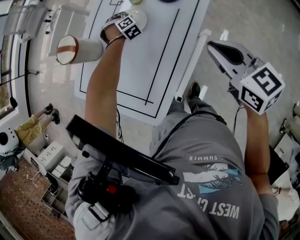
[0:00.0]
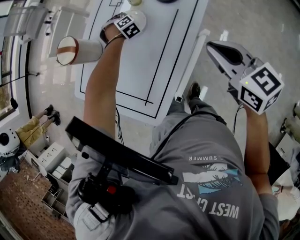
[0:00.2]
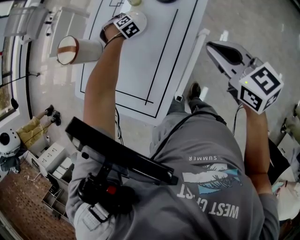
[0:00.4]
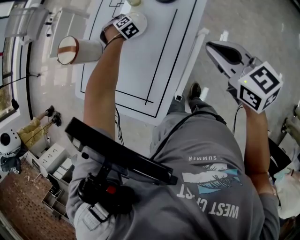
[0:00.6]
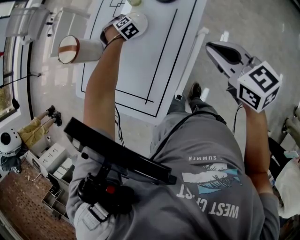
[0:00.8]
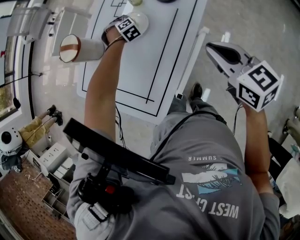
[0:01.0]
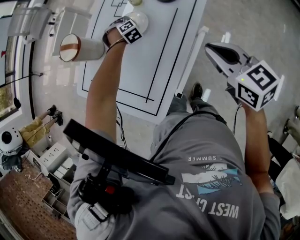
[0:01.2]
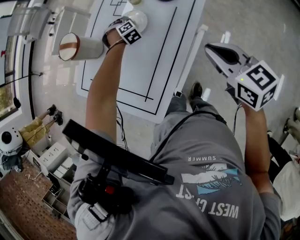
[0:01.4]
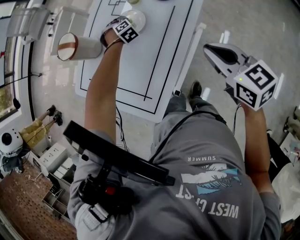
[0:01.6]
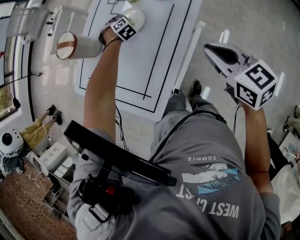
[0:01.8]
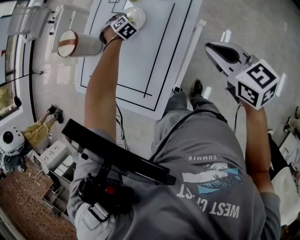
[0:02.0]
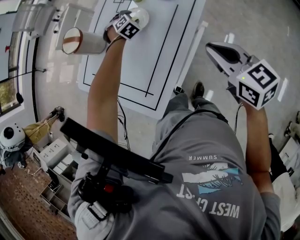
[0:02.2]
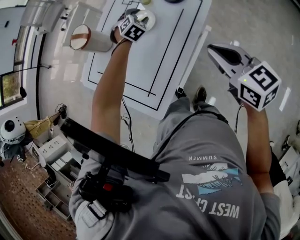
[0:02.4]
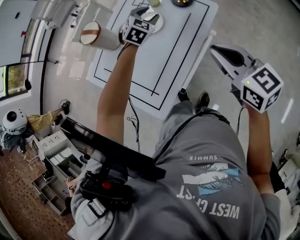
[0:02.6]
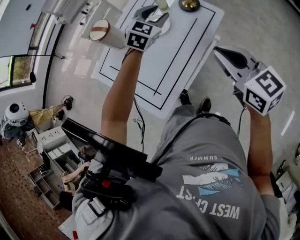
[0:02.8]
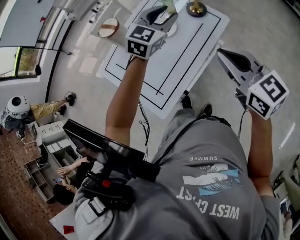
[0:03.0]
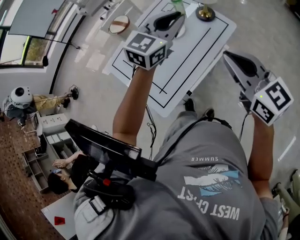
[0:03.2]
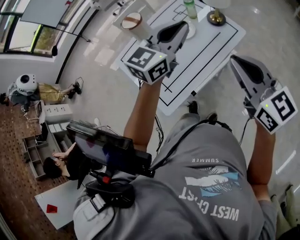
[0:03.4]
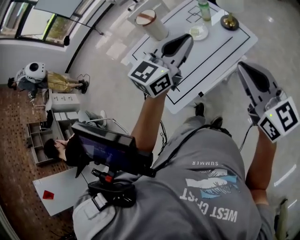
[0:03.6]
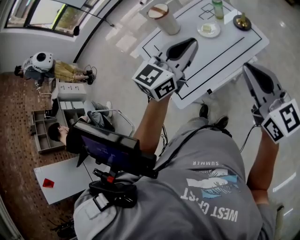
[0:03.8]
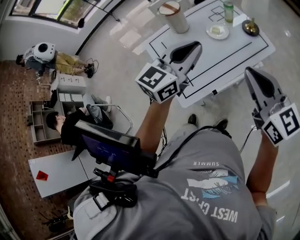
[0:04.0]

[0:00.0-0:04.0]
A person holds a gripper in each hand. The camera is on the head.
0.0 to 1.4 s: The left gripper goes approximately 5 cm backward.
1.4 to 2.6 s: The left gripper moves upward, about 20 cm, and turns by about 40 degrees; the right gripper goes some 5 cm upward.
2.6 to 4.0 s: The right gripper heads upward and backward, covering roughly 15 cm, and turns by some 20 degrees; the left gripper travels backward and upward by about 35 cm, points its fingers roughly 30 degrees further upward, and closes up.

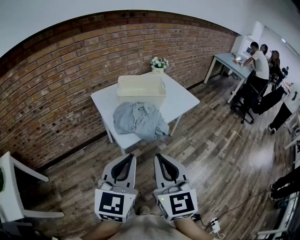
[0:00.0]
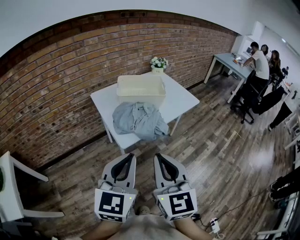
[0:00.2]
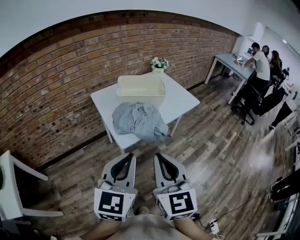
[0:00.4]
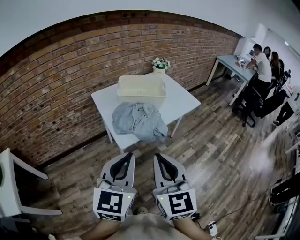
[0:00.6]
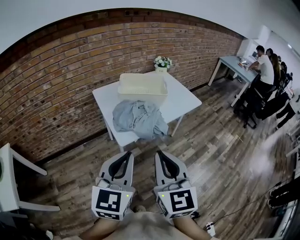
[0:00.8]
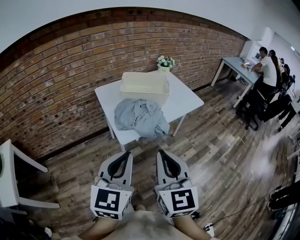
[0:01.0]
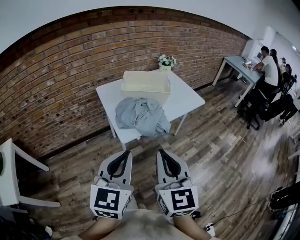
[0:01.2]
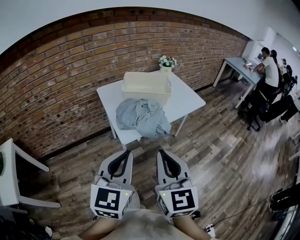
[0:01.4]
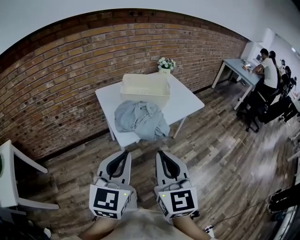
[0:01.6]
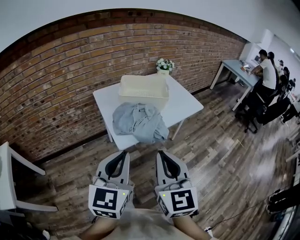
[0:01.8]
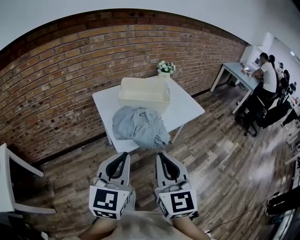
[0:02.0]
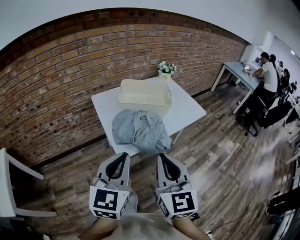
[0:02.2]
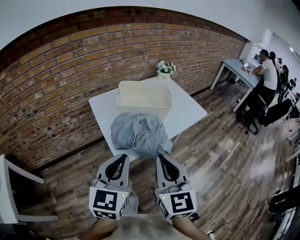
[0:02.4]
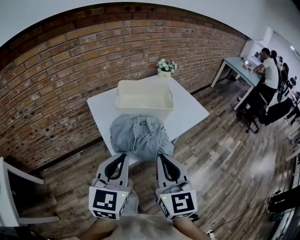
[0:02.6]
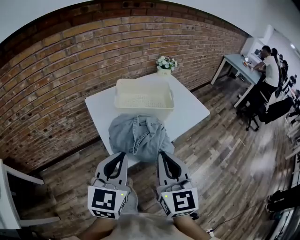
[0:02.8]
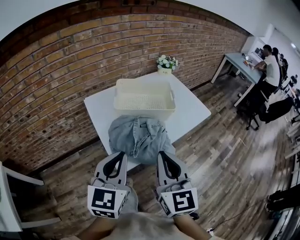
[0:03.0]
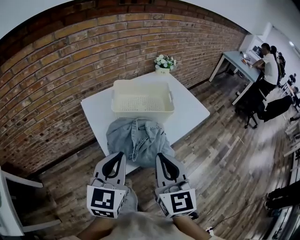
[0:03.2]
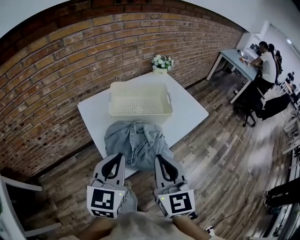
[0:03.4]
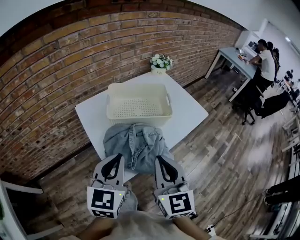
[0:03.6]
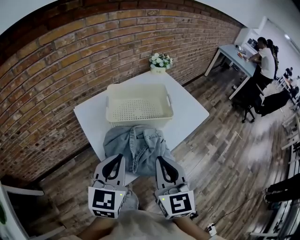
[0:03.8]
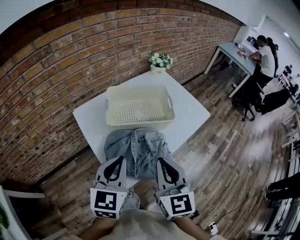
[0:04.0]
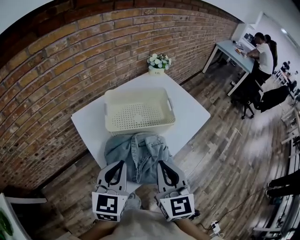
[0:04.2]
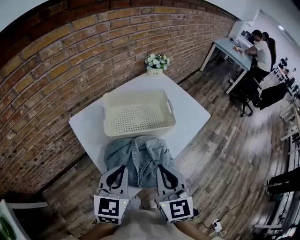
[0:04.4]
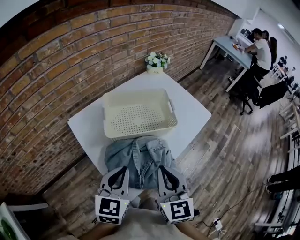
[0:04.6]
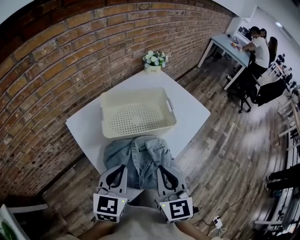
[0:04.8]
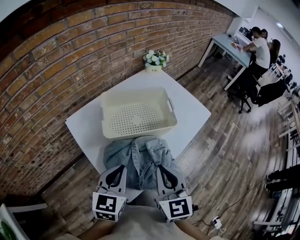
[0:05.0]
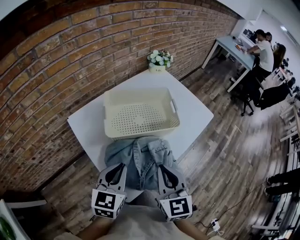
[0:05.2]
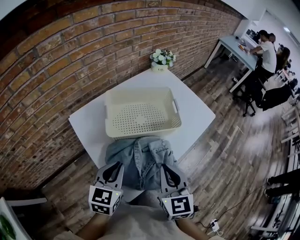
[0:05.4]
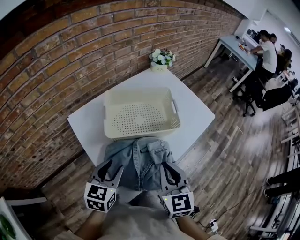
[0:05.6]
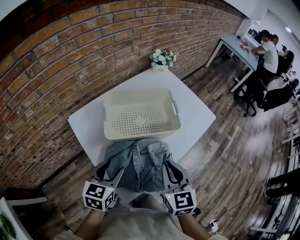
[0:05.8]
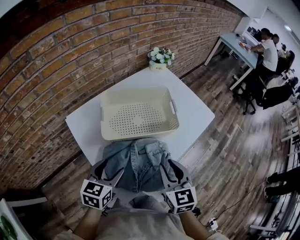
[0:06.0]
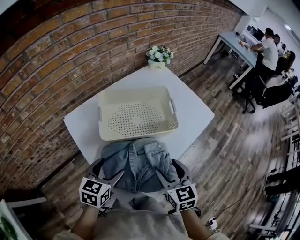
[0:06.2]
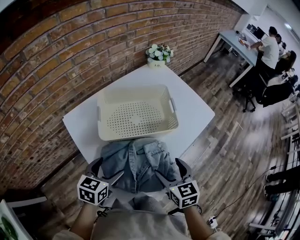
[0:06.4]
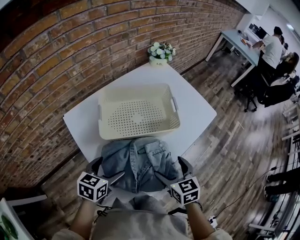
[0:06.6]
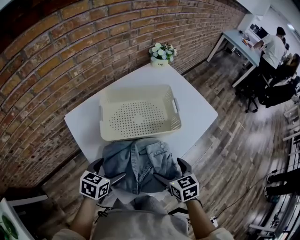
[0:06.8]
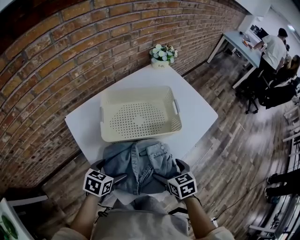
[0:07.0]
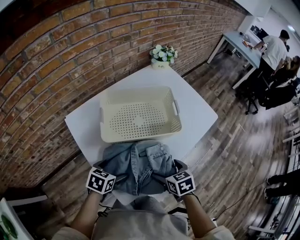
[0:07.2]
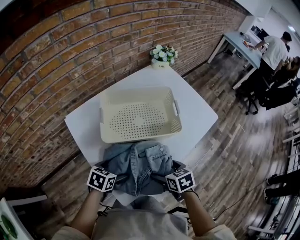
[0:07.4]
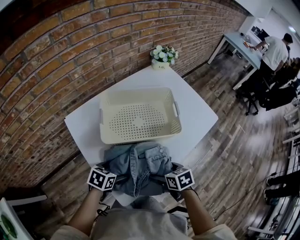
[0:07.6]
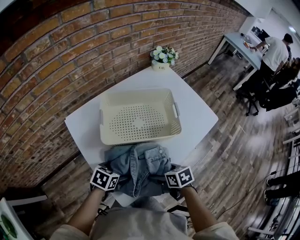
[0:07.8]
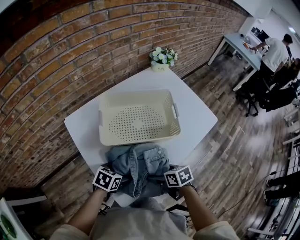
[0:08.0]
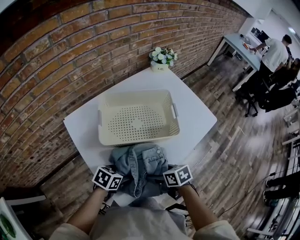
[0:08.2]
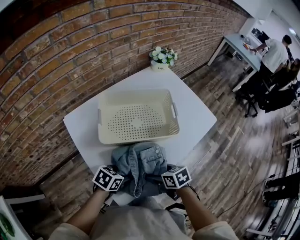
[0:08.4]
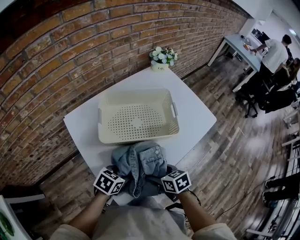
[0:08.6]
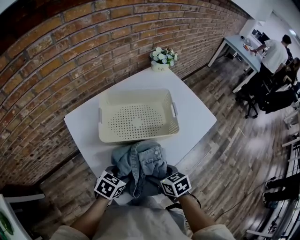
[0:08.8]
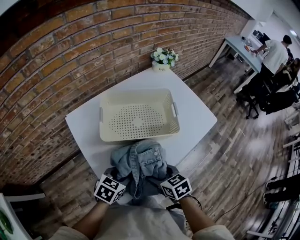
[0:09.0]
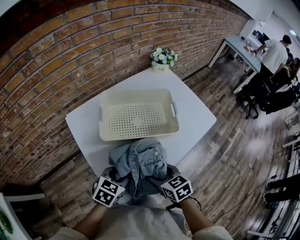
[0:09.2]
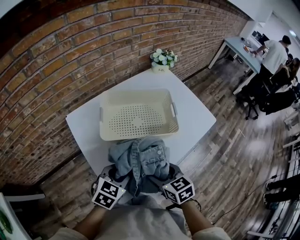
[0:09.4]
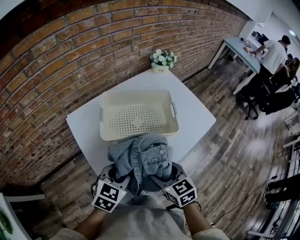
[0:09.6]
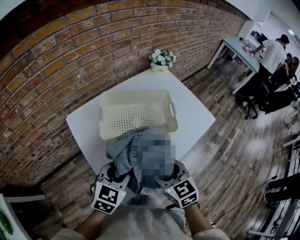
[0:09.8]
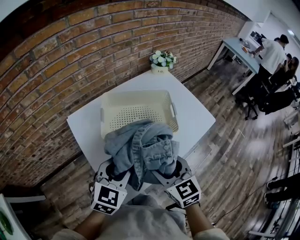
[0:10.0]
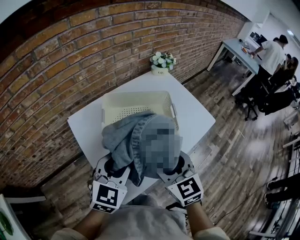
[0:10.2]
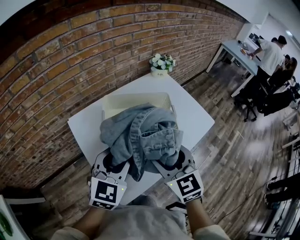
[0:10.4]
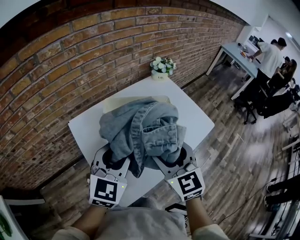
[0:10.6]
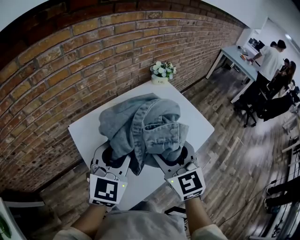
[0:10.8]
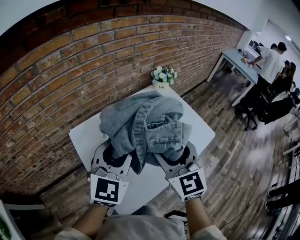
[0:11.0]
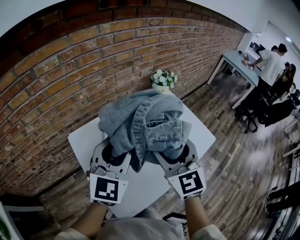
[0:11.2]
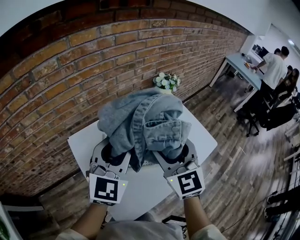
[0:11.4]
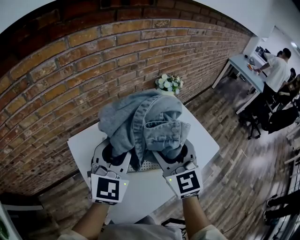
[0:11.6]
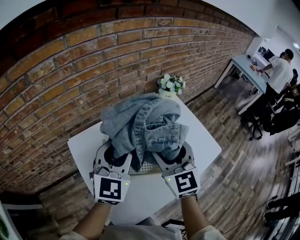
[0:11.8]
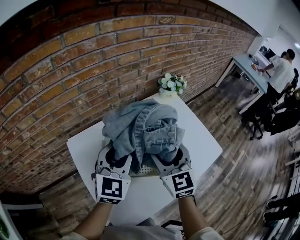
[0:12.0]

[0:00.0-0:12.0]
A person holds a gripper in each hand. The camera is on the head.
0.0 to 1.6 s: The grippers stay close to where they were, moving slightly.
1.6 to 3.0 s: The grippers both shift forward by about 20 cm.
3.0 to 4.4 s: The grippers both shift forward and downward by approximately 15 cm.
4.4 to 6.0 s: The right gripper heads downward and forward, covering roughly 10 cm. Meanwhile the left gripper heads downward, covering about 10 cm, and opens up.
6.0 to 7.6 s: The two grippers go some 15 cm downward. The right gripper points its fingers approximately 30 degrees further downward, and opens; the left gripper swivels about 30 degrees, and opens its fingers.
7.6 to 9.0 s: The right gripper closes up; the left gripper moves roughly 5 cm, and closes its fingers.
9.0 to 10.4 s: Both grippers move upward, about 20 cm. The right gripper rotates approximately 40 degrees, while the left gripper changes its angle by roughly 40 degrees.
10.4 to 12.0 s: Both grippers move forward, about 15 cm.

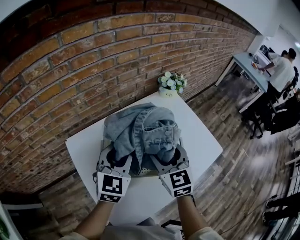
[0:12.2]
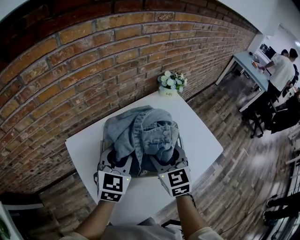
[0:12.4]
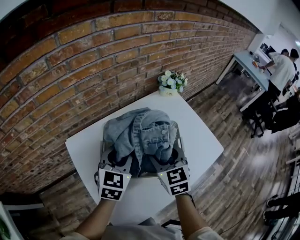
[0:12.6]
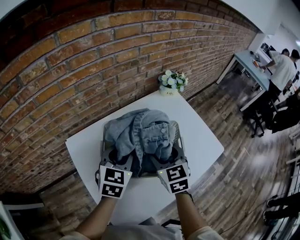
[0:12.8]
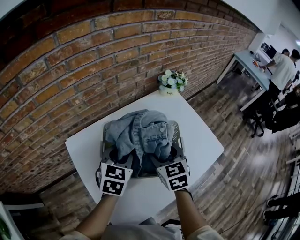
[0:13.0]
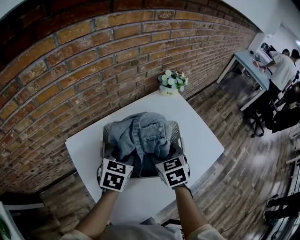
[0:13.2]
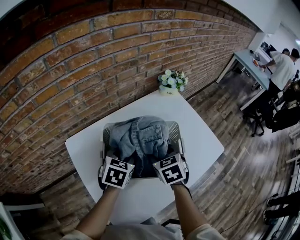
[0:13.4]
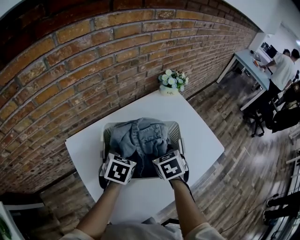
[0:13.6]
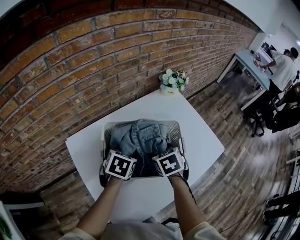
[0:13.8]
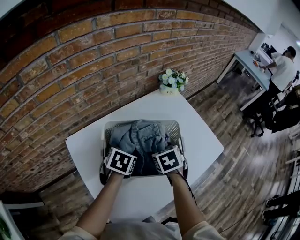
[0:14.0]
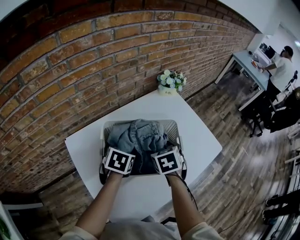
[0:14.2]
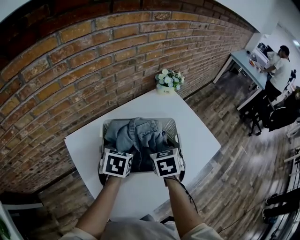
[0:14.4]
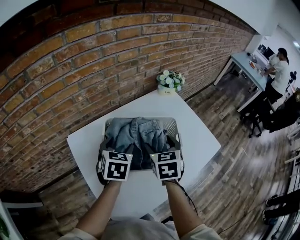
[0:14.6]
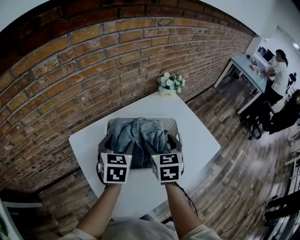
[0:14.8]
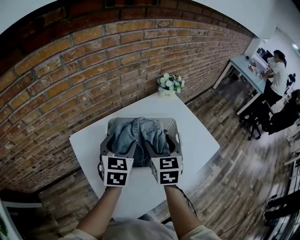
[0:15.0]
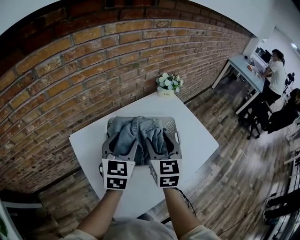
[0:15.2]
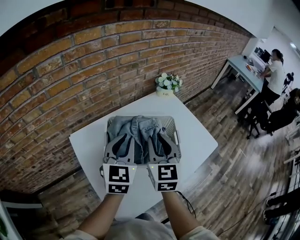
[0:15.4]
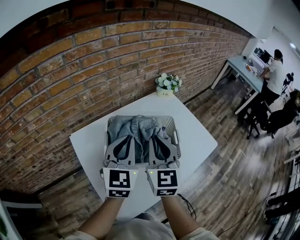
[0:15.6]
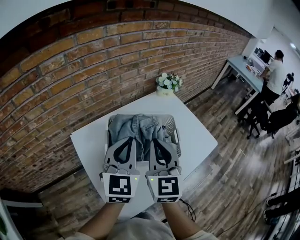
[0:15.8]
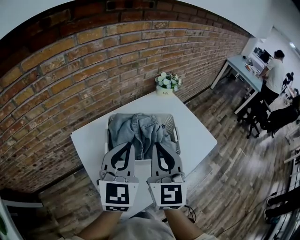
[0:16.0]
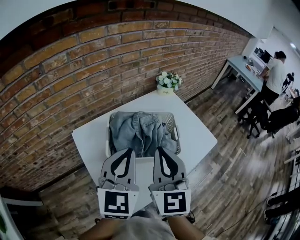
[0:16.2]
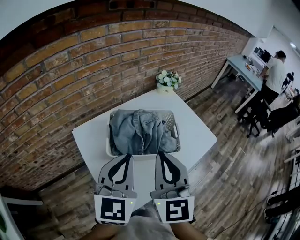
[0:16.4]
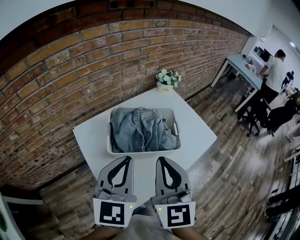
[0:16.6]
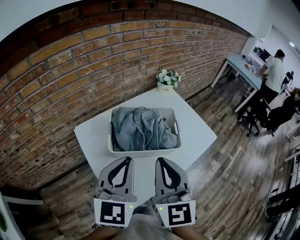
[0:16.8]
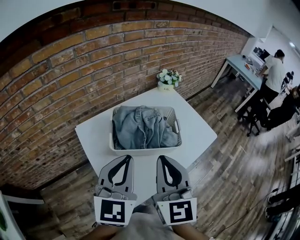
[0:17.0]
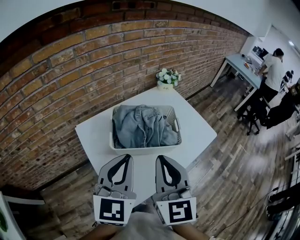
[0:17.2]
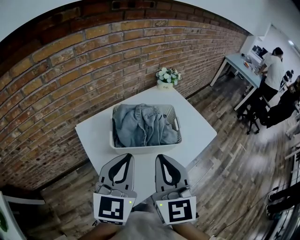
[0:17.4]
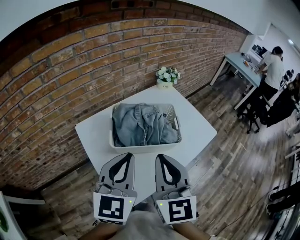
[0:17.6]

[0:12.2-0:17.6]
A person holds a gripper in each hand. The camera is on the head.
12.2 to 13.6 s: The grippers both shift downward by about 10 cm. The right gripper tips its fingers downward by some 40 degrees, while the left gripper points its fingers roughly 30 degrees further downward.
13.6 to 15.0 s: The two grippers go some 10 cm upward. The left gripper changes its angle by roughly 30 degrees, while the right gripper rotates approximately 30 degrees.
15.0 to 16.2 s: The grippers both shift backward and upward by about 20 cm. The left gripper closes. The right gripper changes its angle by some 20 degrees, and closes up.
16.2 to 17.6 s: The grippers both shift backward by about 10 cm.

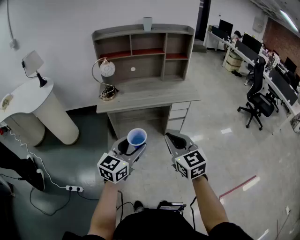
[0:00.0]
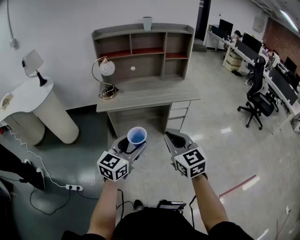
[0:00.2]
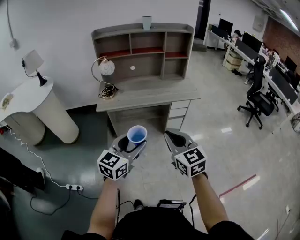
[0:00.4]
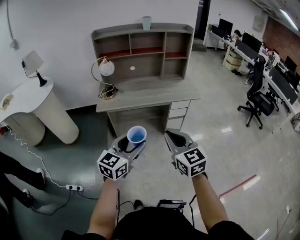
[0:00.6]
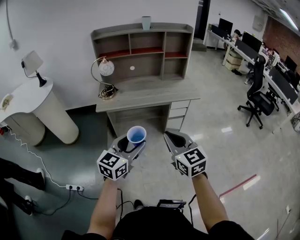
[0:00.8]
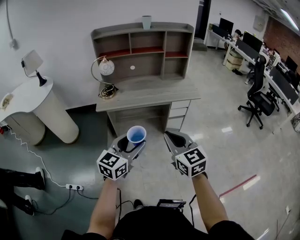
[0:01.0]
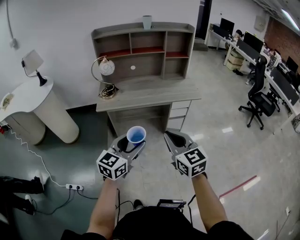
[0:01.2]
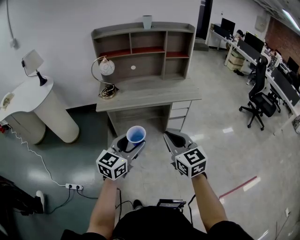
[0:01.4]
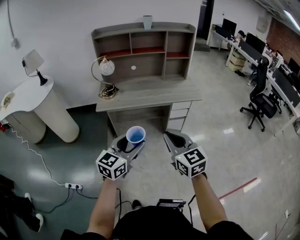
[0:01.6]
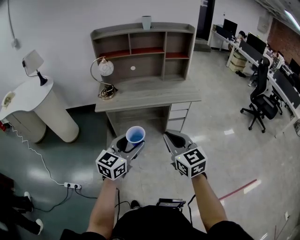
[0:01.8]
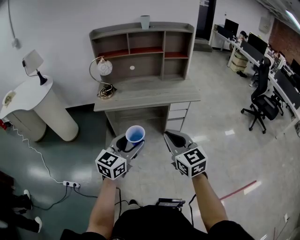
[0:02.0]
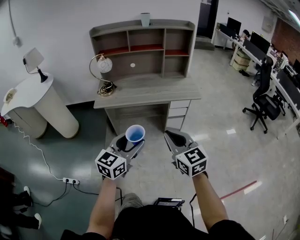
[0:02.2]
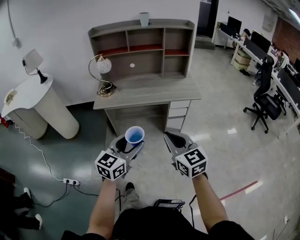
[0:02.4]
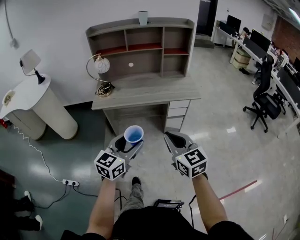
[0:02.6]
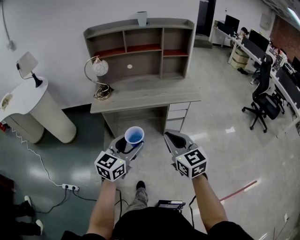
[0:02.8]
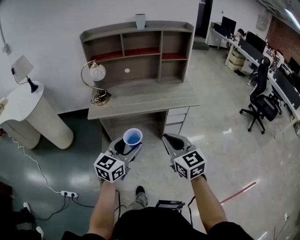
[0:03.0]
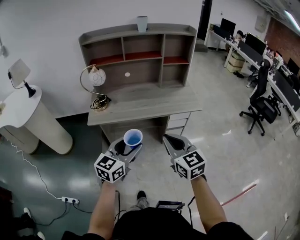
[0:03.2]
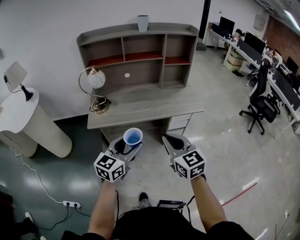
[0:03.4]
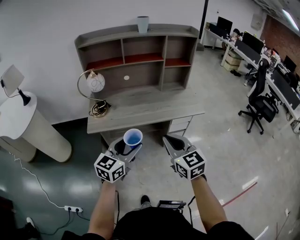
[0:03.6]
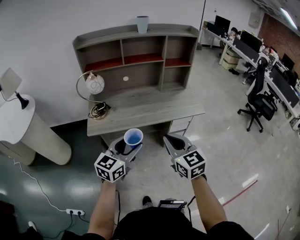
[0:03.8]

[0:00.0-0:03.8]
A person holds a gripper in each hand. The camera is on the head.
0.0 to 1.2 s: The two grippers keep their place.
1.2 to 2.6 s: Both grippers travel together to the right, roughly 5 cm.
2.6 to 3.8 s: The two grippers go roughly 20 cm forward and to the left.
